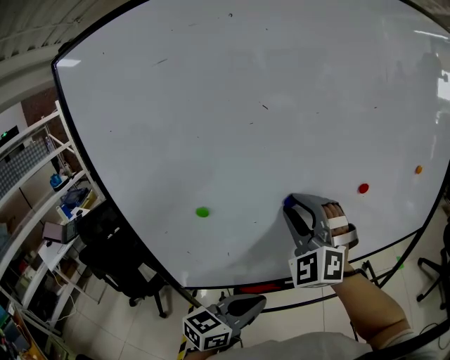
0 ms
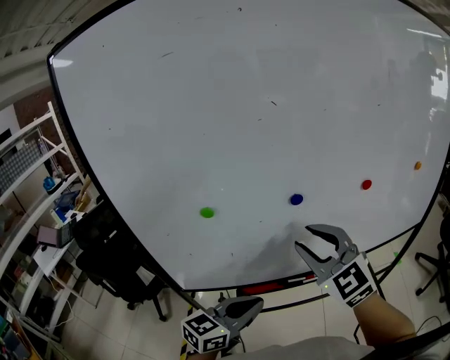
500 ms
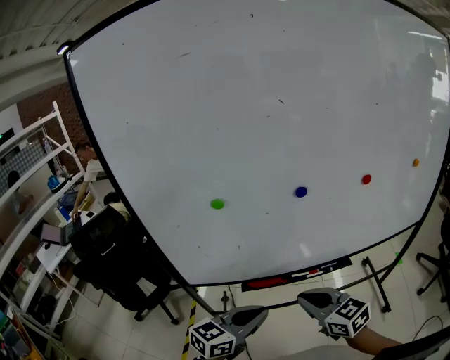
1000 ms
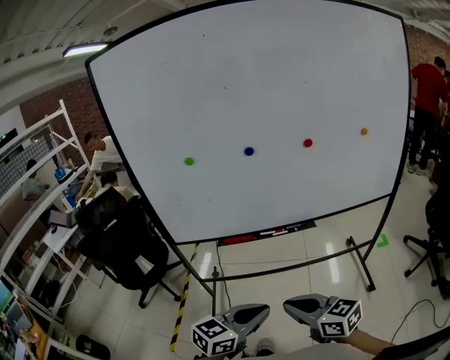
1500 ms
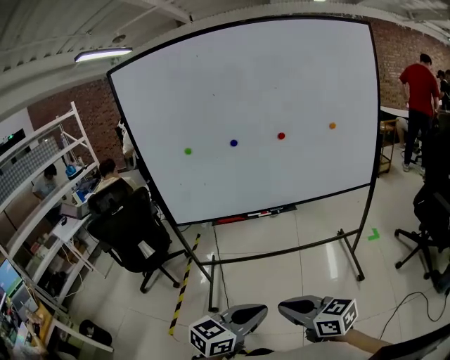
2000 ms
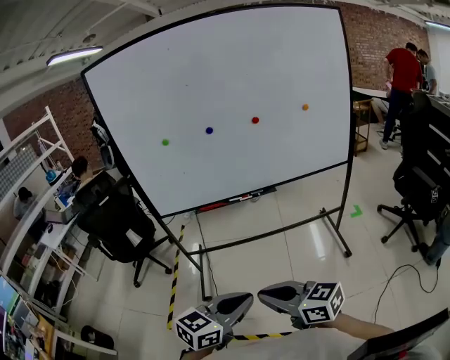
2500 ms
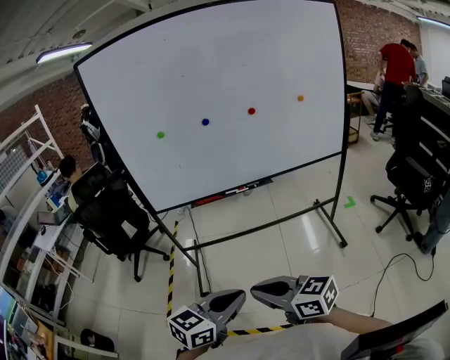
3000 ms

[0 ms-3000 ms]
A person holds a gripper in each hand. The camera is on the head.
0 ms to 1500 ms: The left gripper is displaced backward and to the right by about 25 cm. Meanwhile the right gripper is displaced backward and downward by some 40 cm, twists about 70 degrees clockwise, seen from behind, and closes.
1500 ms to 3000 ms: Both grippers move backward, roughly 20 cm.

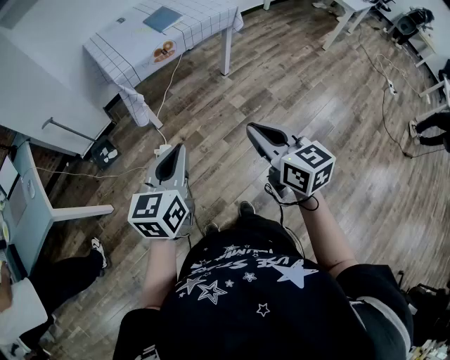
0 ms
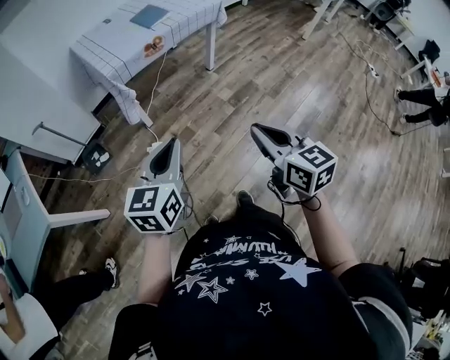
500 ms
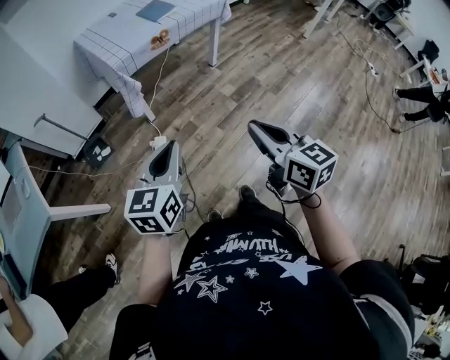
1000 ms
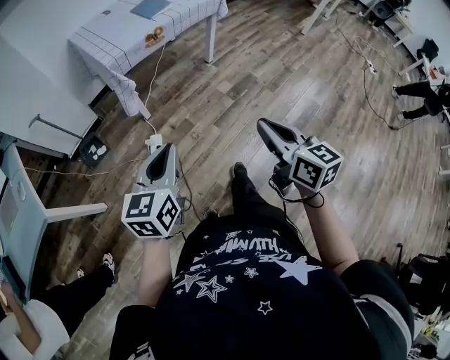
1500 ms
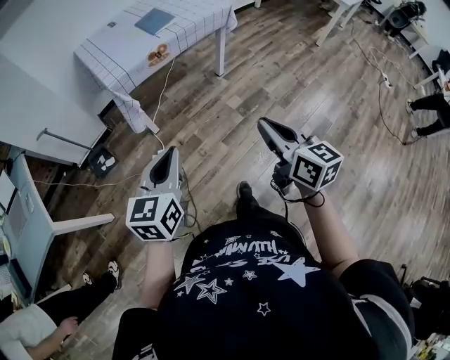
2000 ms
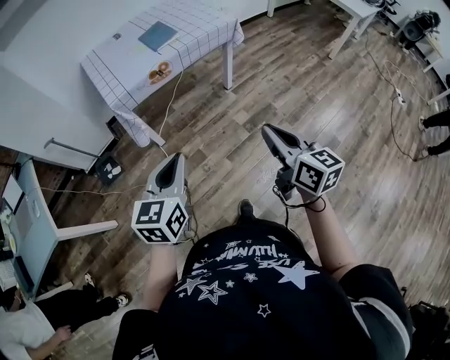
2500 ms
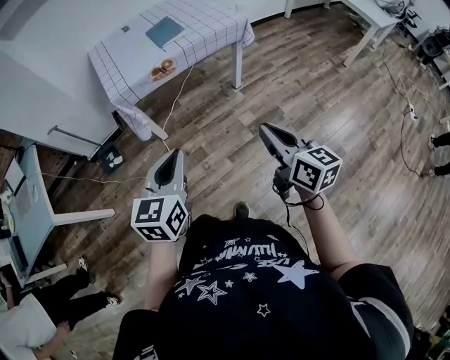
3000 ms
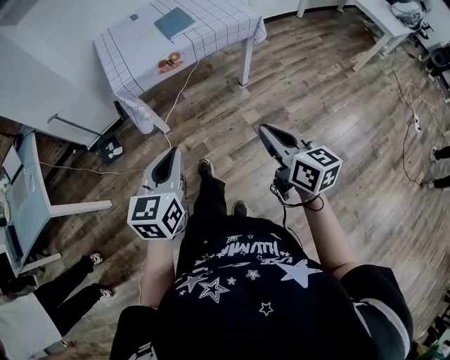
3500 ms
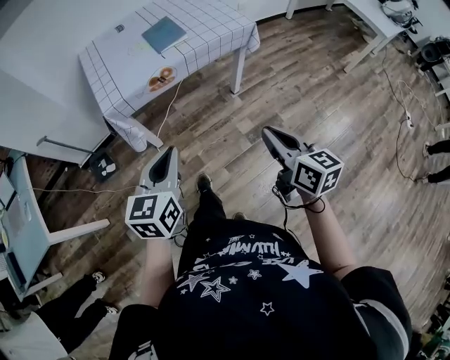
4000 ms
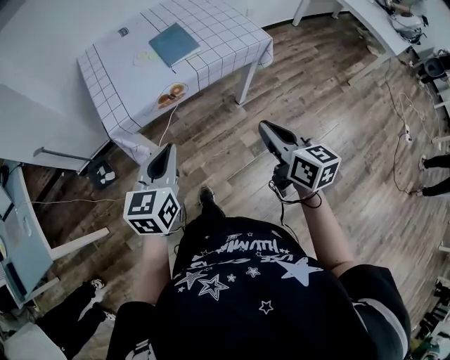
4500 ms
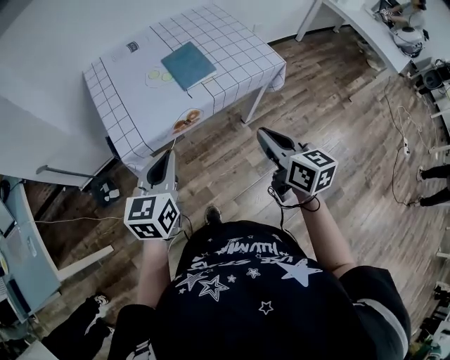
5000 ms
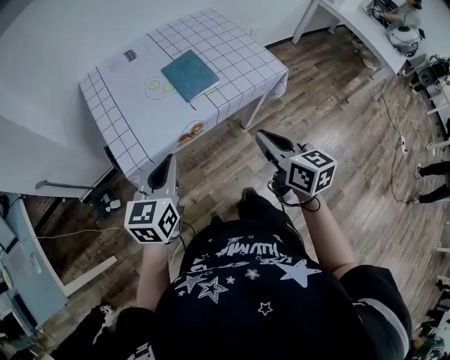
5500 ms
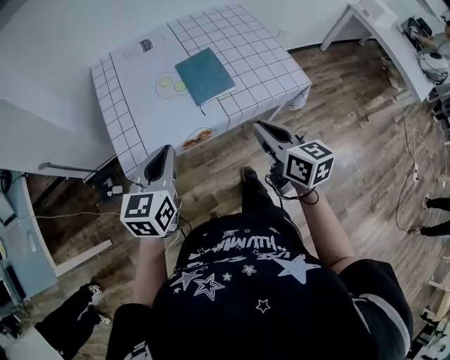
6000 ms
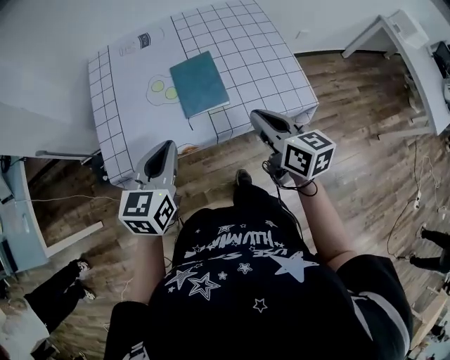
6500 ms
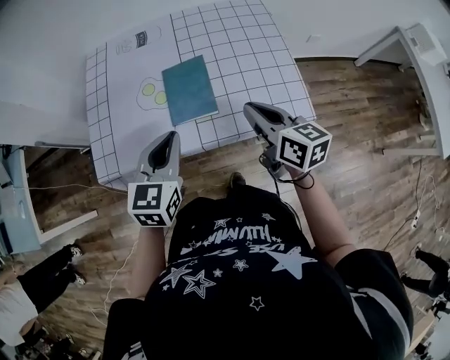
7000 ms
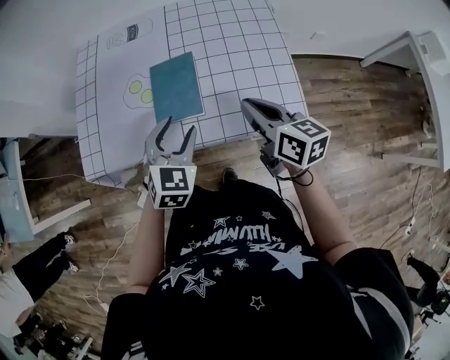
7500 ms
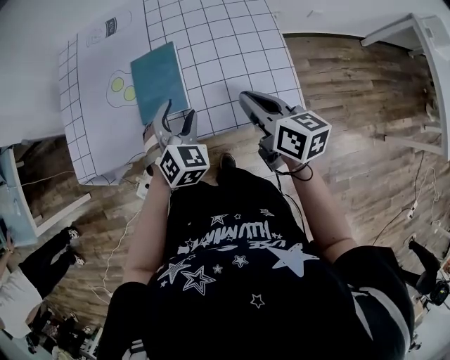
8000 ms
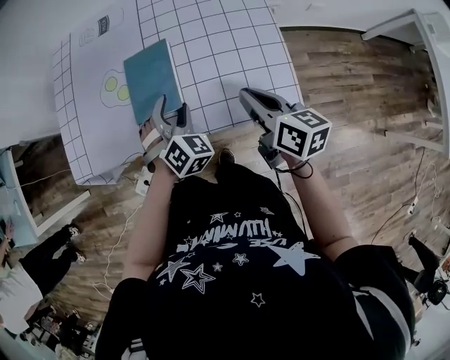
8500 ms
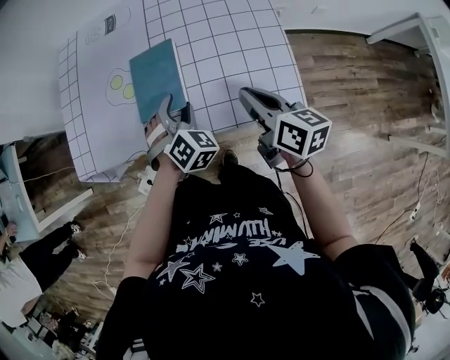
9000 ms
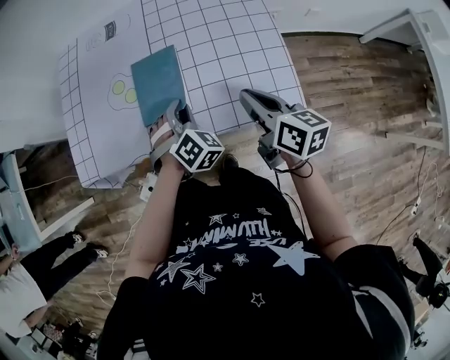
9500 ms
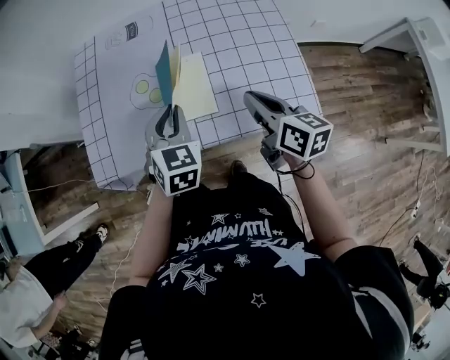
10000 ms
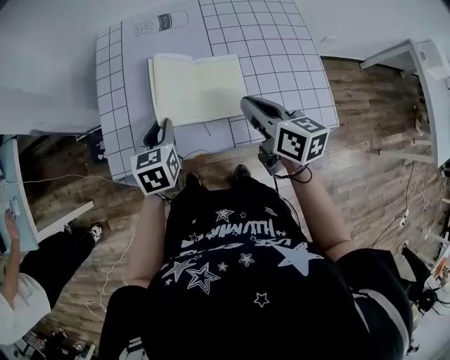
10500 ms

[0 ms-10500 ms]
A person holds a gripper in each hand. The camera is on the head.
0 ms to 2000 ms: The left gripper travels to the left and back again, approximately 10 cm each way. Meanwhile the right gripper moves approximately 10 cm backward and comes back.
2000 ms to 4000 ms: Both grippers travel together forward and to the right, approximately 20 cm.
4000 ms to 6500 ms: The two grippers go approximately 40 cm forward. The right gripper turns by some 20 degrees.
6500 ms to 8500 ms: The two grippers go approximately 20 cm to the right, downward and forward. The left gripper rotates roughly 60 degrees, and opens its fingers.
8500 ms to 10500 ms: The two grippers go some 20 cm to the left. The left gripper rotates around the line of its fingers by about 50 degrees, counterclockwise from behind, and closes its fingers.

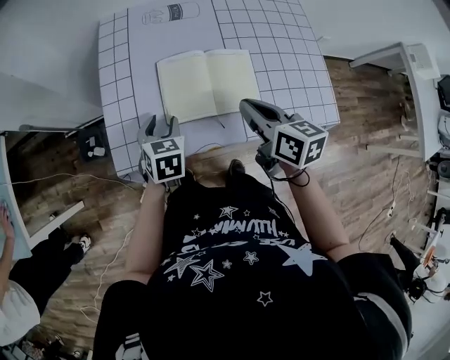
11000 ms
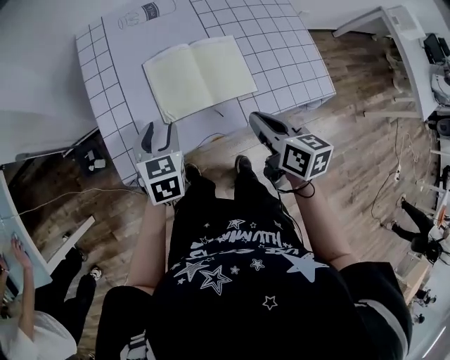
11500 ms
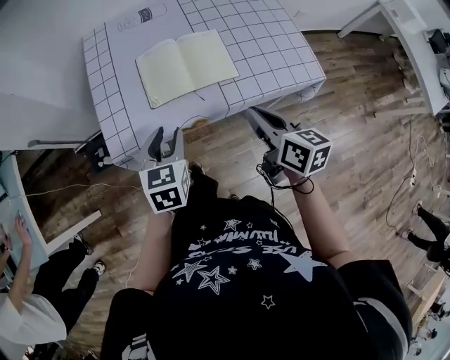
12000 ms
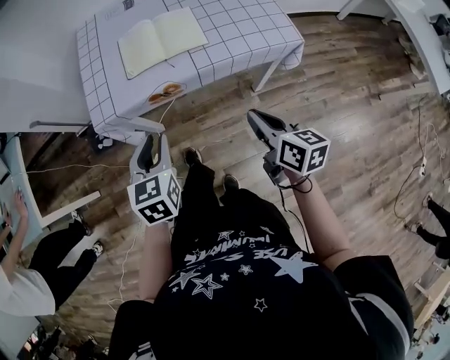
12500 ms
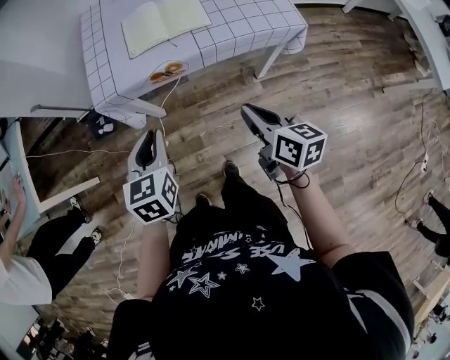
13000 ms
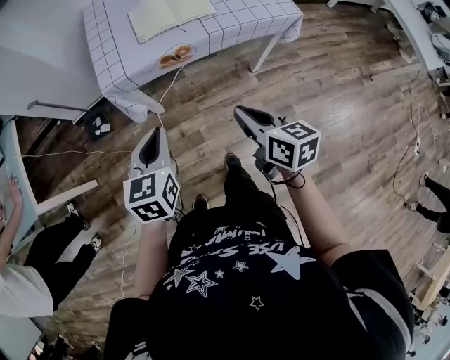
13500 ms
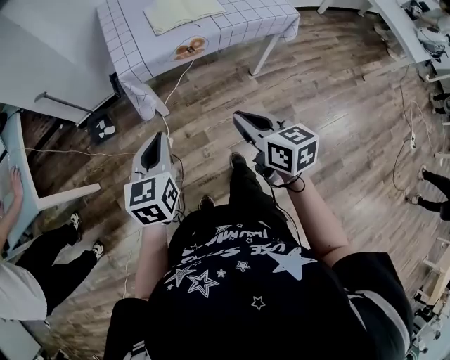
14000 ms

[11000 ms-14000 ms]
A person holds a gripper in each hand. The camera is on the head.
11000 ms to 12500 ms: The left gripper moves backward and upward, about 30 cm. Meanwhile the right gripper is displaced backward by roughly 30 cm.
12500 ms to 14000 ms: The grippers both shift to the left and backward by roughly 25 cm. The left gripper closes its fingers.

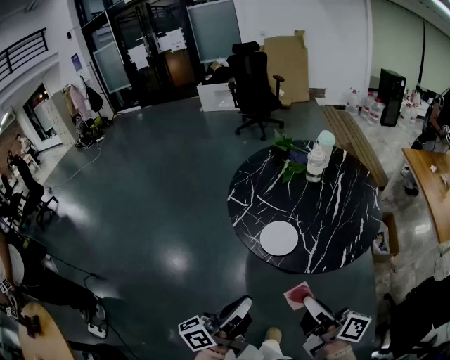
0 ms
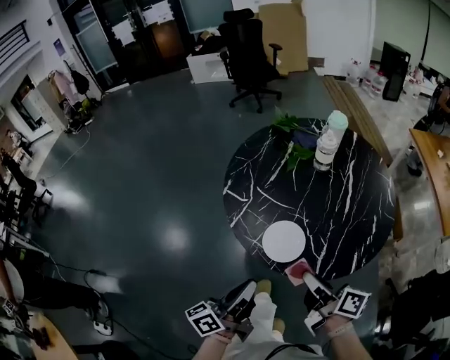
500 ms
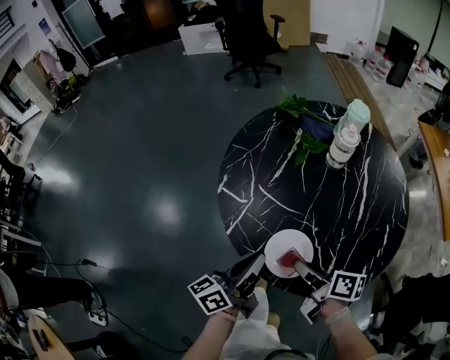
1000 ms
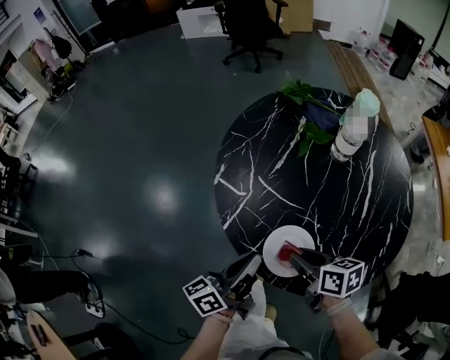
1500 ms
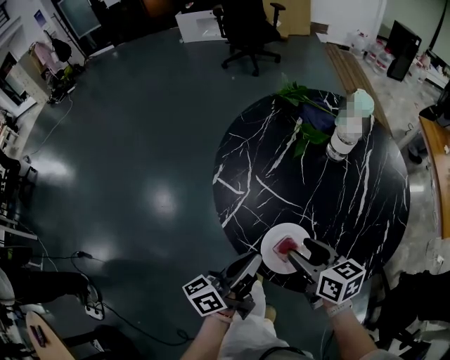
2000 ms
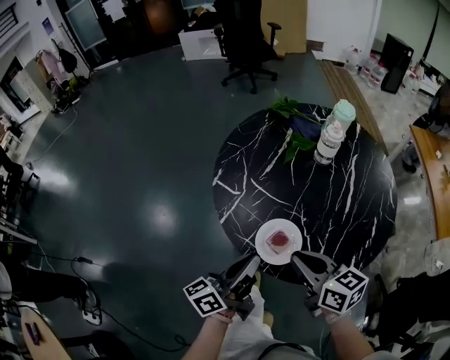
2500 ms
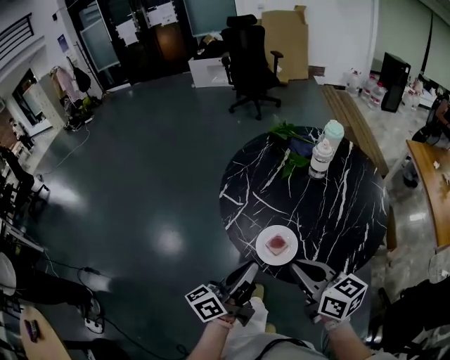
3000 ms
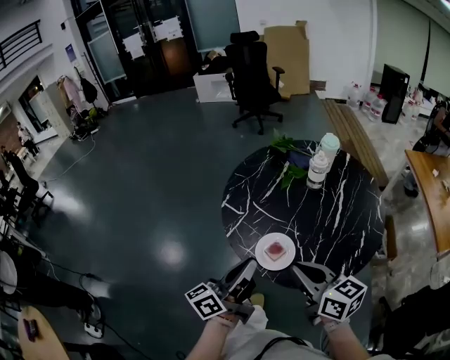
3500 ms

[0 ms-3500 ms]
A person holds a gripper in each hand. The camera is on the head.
0 ms to 2000 ms: The two grippers go about 30 cm forward and downward. The right gripper tips its fingers downward by some 30 degrees, and opens.
2000 ms to 3500 ms: The grippers both shift upward and backward by approximately 20 cm. The right gripper swivels roughly 20 degrees, and closes up.

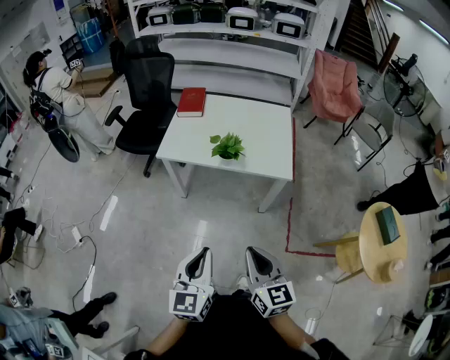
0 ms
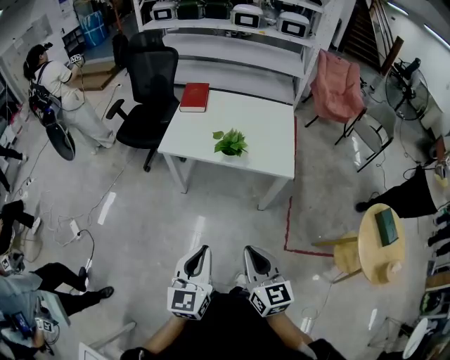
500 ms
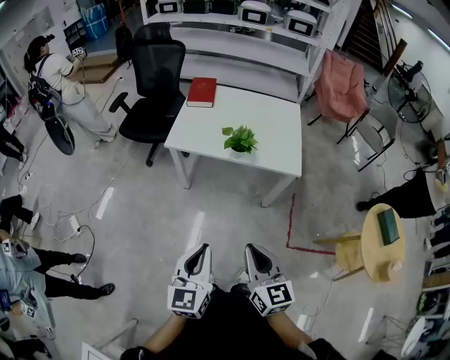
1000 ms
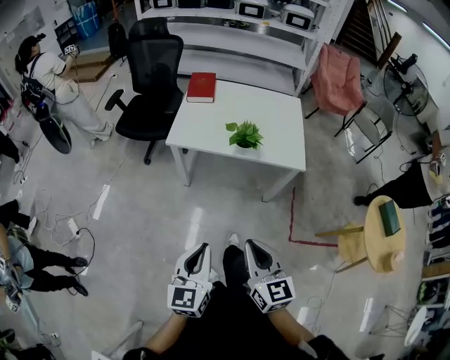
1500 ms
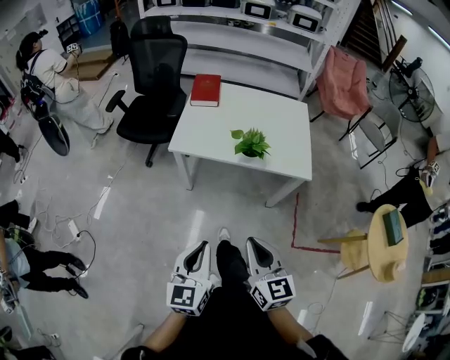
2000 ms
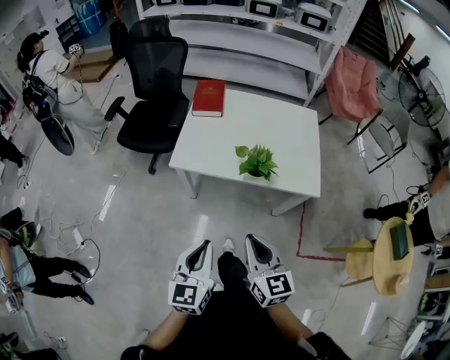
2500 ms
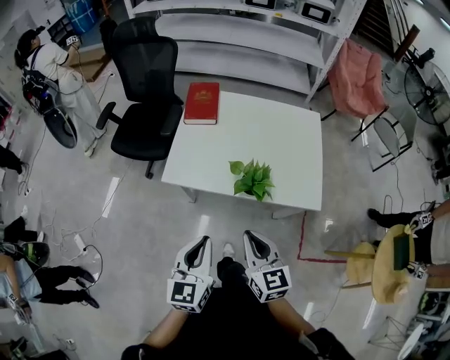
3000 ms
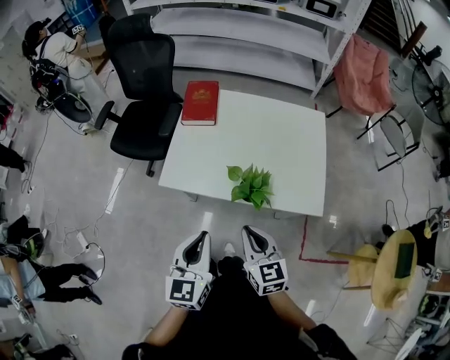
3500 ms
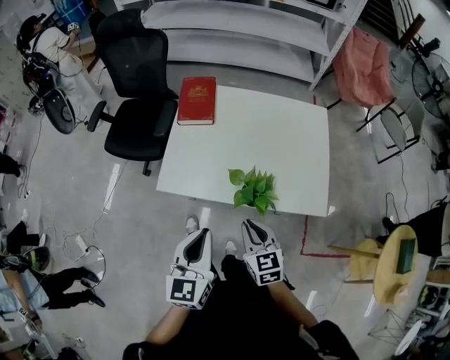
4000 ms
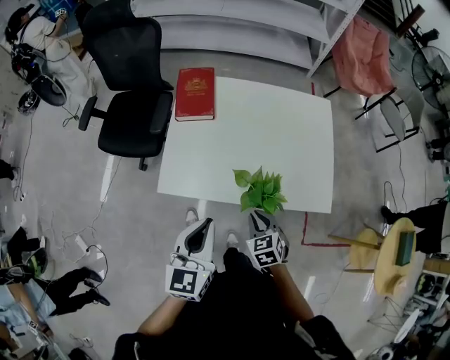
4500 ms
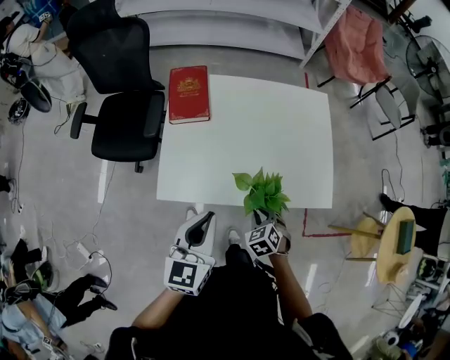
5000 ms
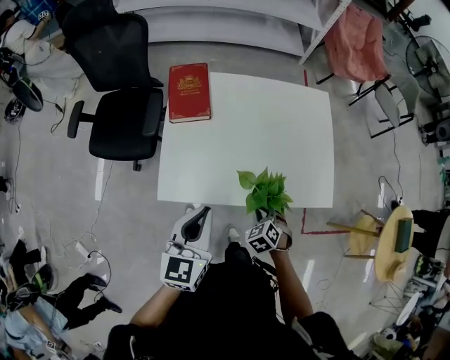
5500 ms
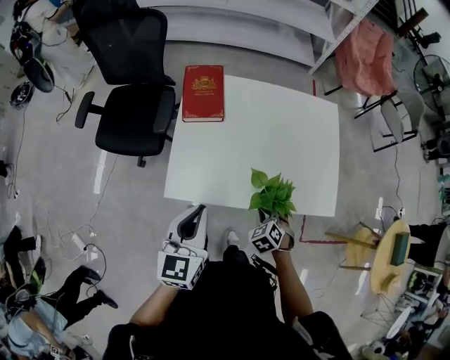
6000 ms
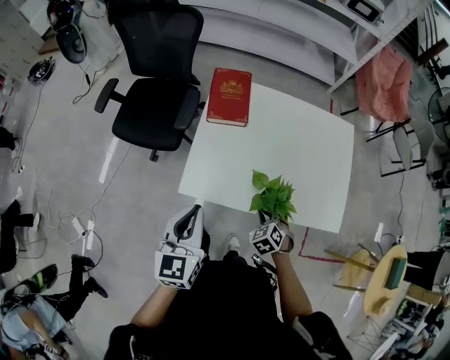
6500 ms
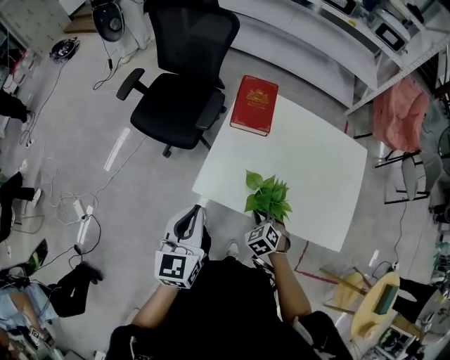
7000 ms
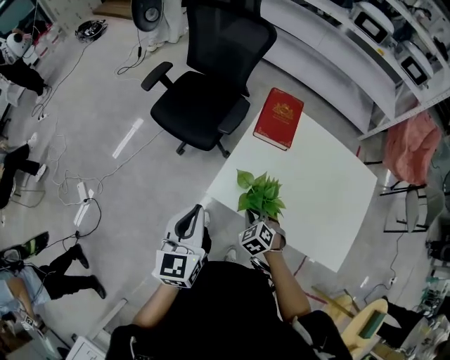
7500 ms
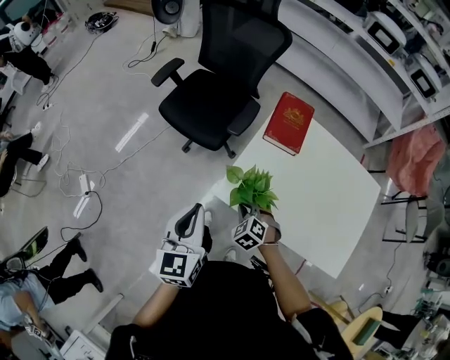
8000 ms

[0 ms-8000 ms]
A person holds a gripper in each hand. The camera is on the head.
0 ms to 2000 ms: Both grippers travel together to the left and forward, about 15 cm.
2000 ms to 4000 ms: Both grippers travel together forward, some 35 cm.
4000 ms to 6000 ms: The right gripper travels downward and forward by some 15 cm, and angles its fingers downward, by approximately 30 degrees. The left gripper is displaced forward and to the left by roughly 15 cm.
6000 ms to 8000 ms: The left gripper moves approximately 20 cm, and swivels some 30 degrees. The right gripper moves approximately 30 cm, and rotates some 40 degrees.
